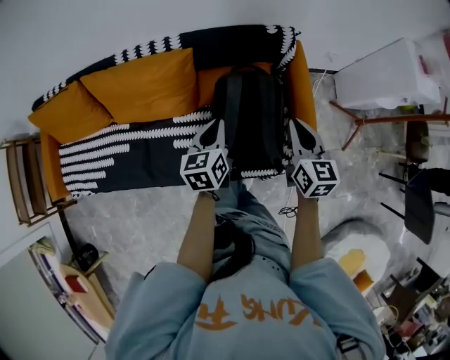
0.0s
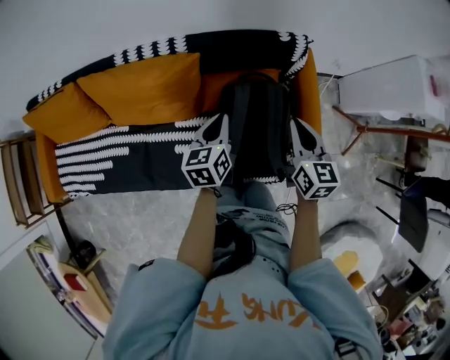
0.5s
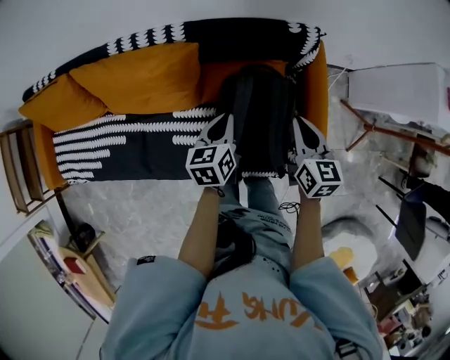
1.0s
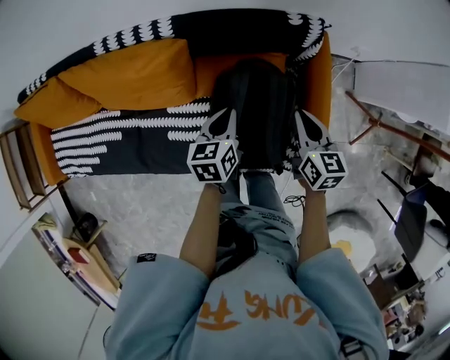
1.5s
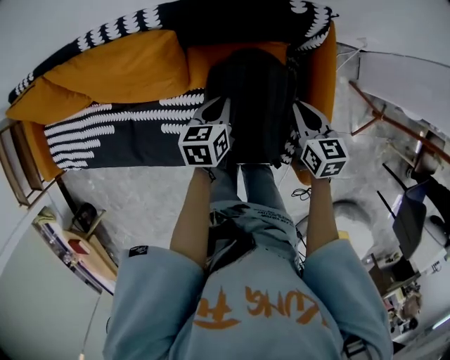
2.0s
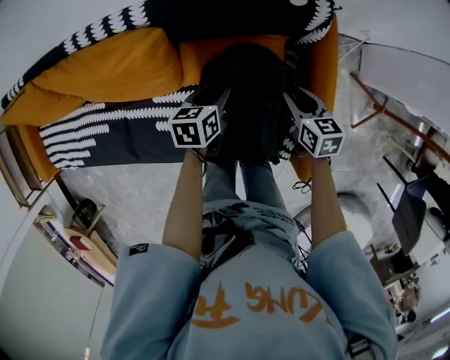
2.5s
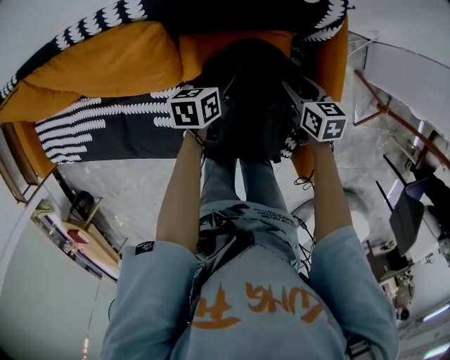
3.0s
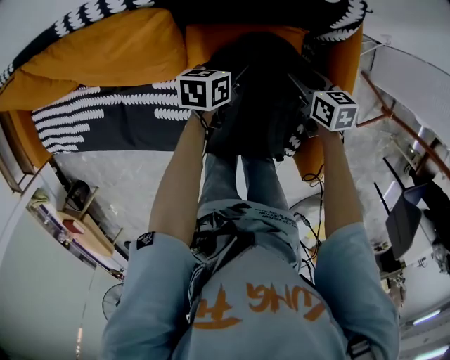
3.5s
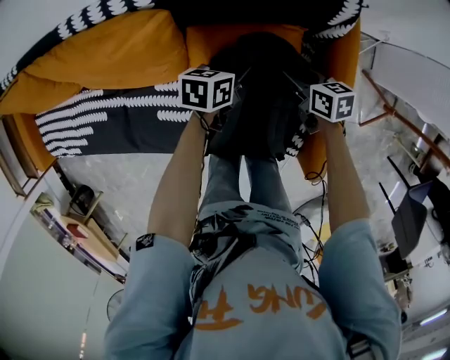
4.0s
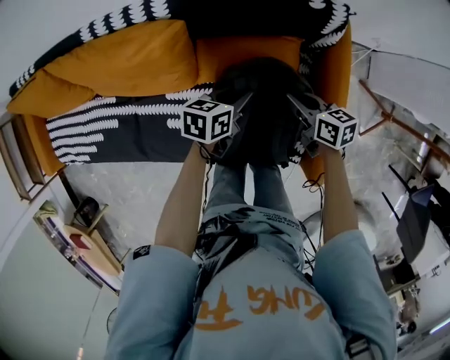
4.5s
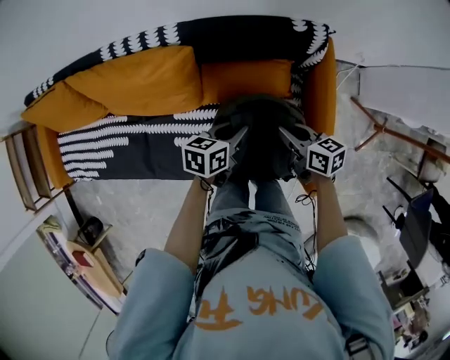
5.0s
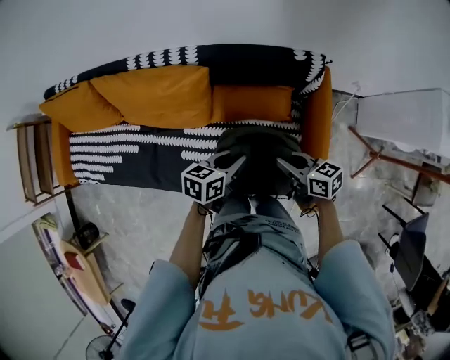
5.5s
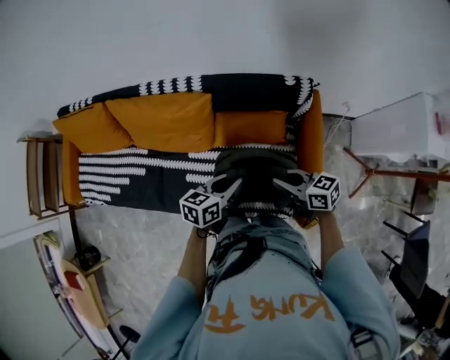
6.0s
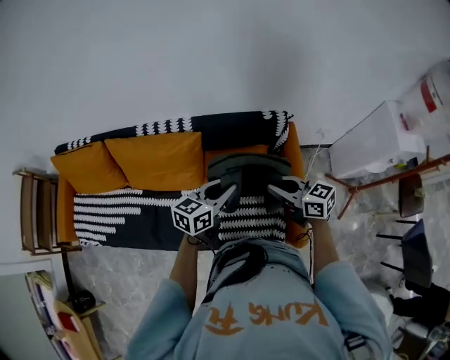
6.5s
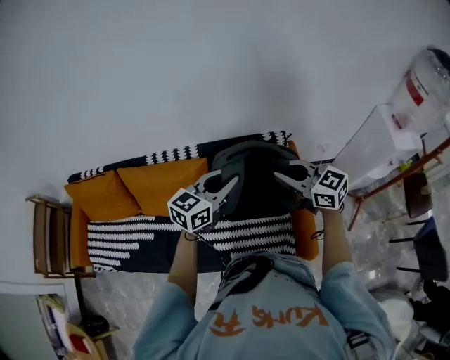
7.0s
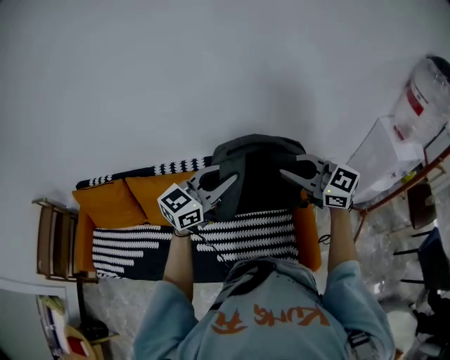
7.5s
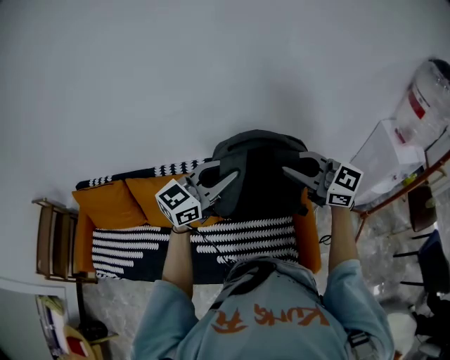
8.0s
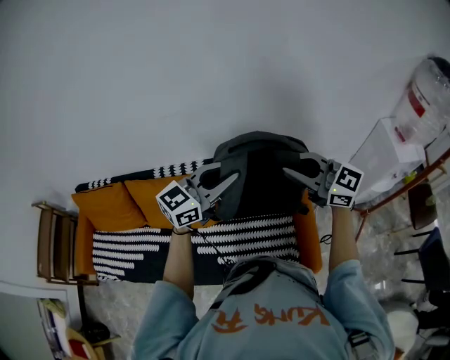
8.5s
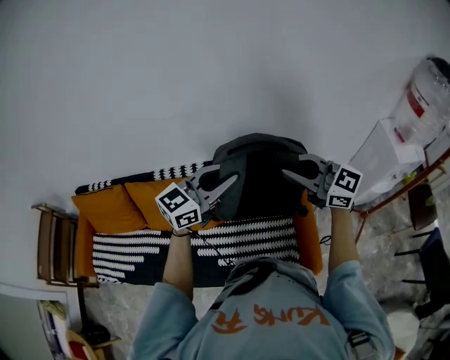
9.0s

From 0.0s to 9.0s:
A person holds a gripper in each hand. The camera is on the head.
From 0.0s to 2.0s: The grippers both shift downward and forward by roughly 20 cm. The right gripper swivels some 20 degrees.
From 2.0s to 4.5s: The right gripper heads downward, covering about 5 cm, swivels approximately 30 degrees, and opens, then closes again. The left gripper moves about 10 cm downward and comes back, rotates roughly 20 degrees, and opens, then closes once more.
From 4.5s to 7.0s: Both grippers move upward, about 40 cm. The right gripper twists roughly 40 degrees counterclockwise, seen from behind. Meanwhile the left gripper swivels about 50 degrees.
From 7.0s to 9.0s: Both grippers move upward, approximately 10 cm.

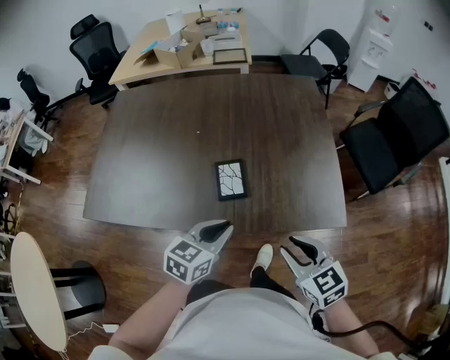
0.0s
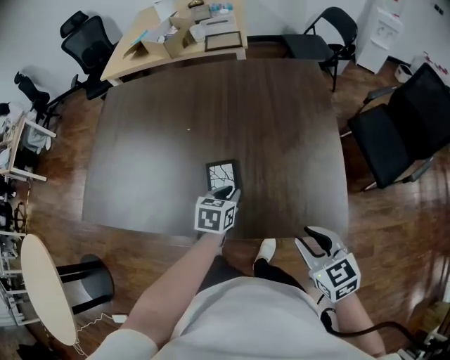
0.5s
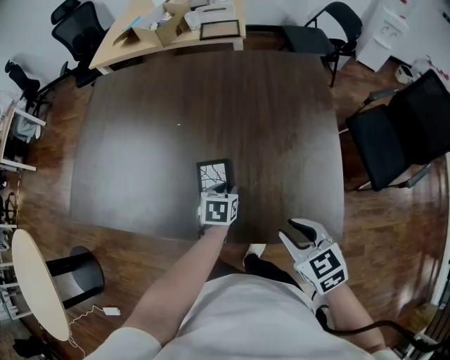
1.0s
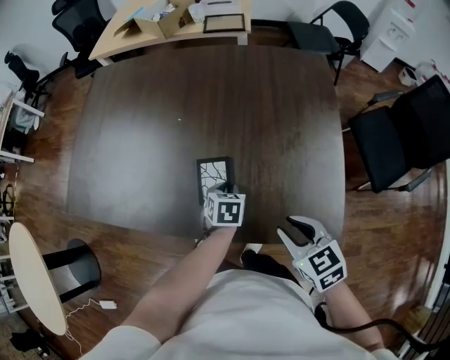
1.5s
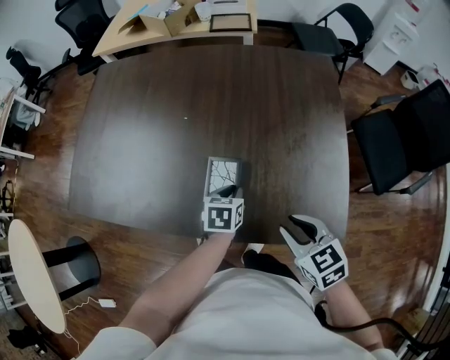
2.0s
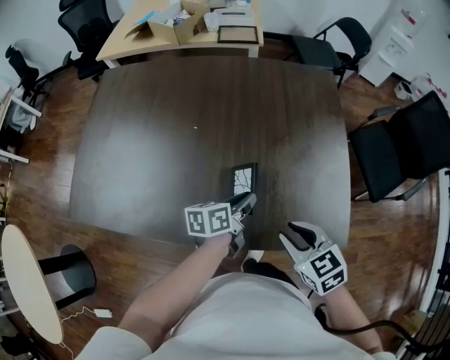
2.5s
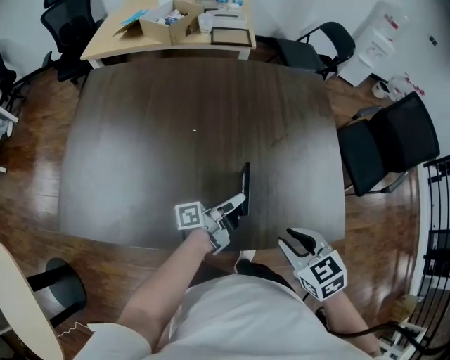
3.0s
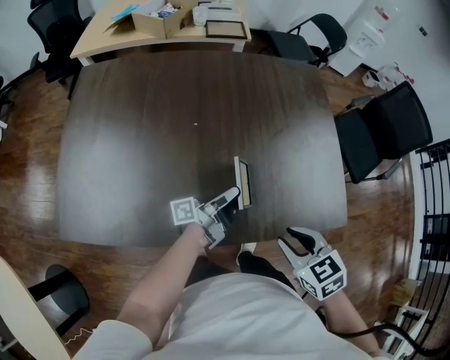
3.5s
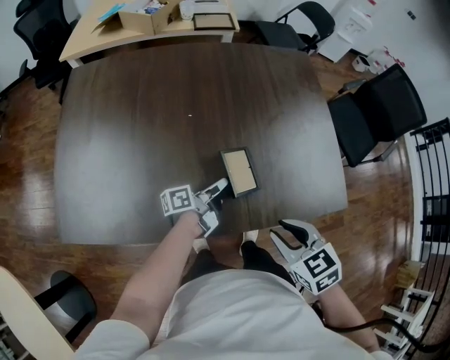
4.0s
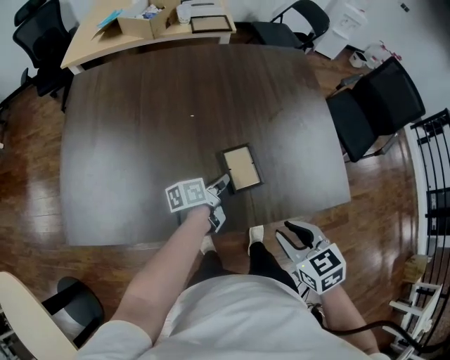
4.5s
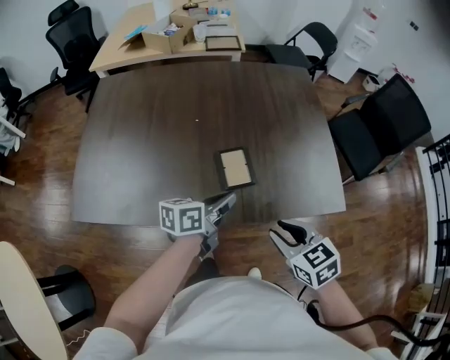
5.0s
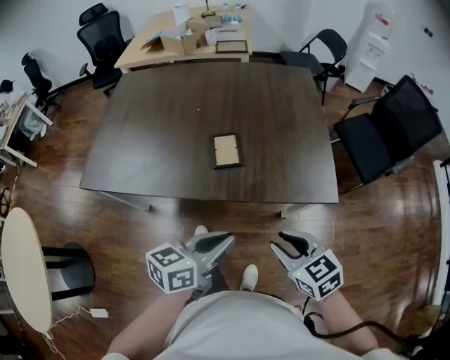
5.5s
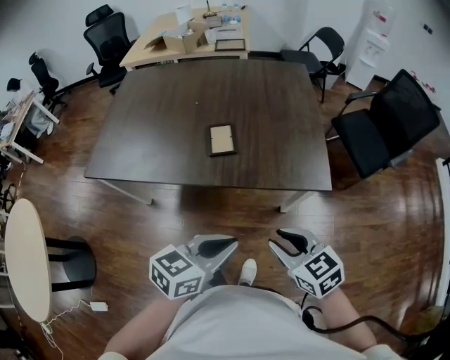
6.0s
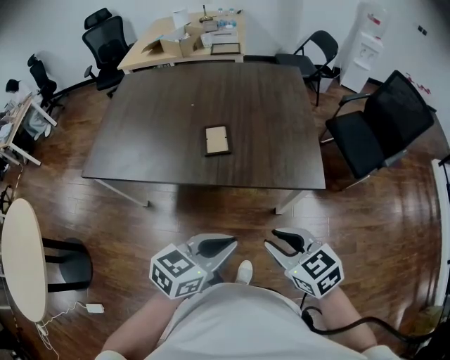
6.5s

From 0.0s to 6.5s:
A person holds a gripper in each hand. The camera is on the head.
From 0.0s to 2.0s: The left gripper heads downward, forward and to the right, covering some 20 cm, and turns by some 30 degrees; the right gripper shifts roughly 10 cm forward and to the right.
From 2.0s to 4.5s: The right gripper heads to the left and backward, covering some 15 cm. The left gripper heads to the left, covering roughly 10 cm, and points its fingers roughly 30 degrees further upward.
From 4.5s to 6.5s: The right gripper heads backward and to the right, covering approximately 20 cm, and turns by roughly 20 degrees. The left gripper travels backward, upward and to the right by roughly 40 cm, and rotates around the line of its fingers by some 50 degrees, clockwise from behind.

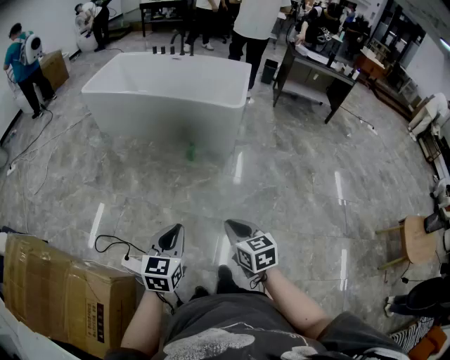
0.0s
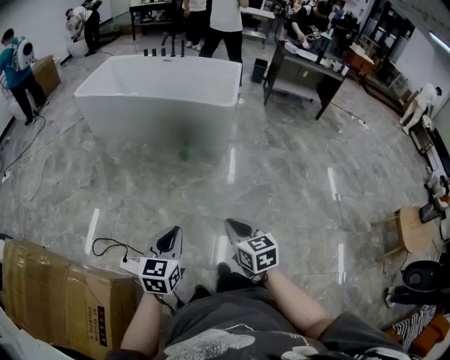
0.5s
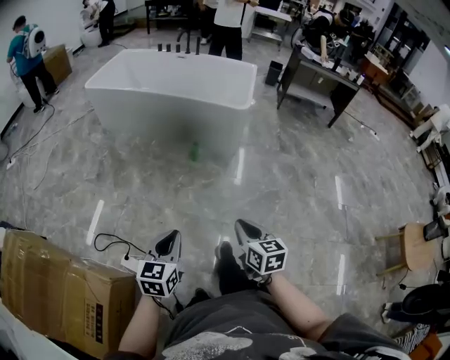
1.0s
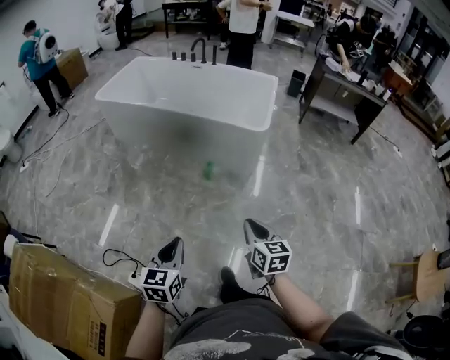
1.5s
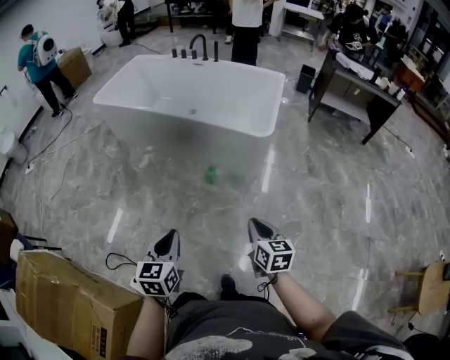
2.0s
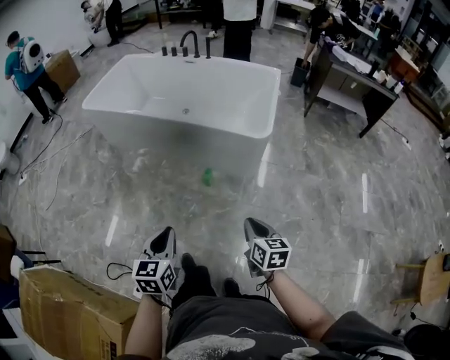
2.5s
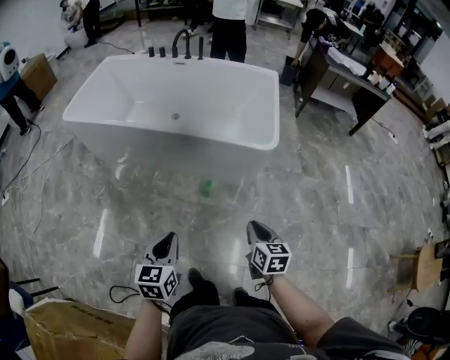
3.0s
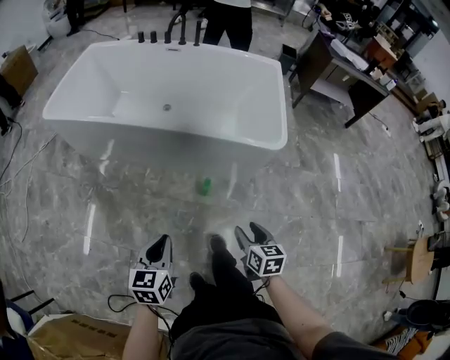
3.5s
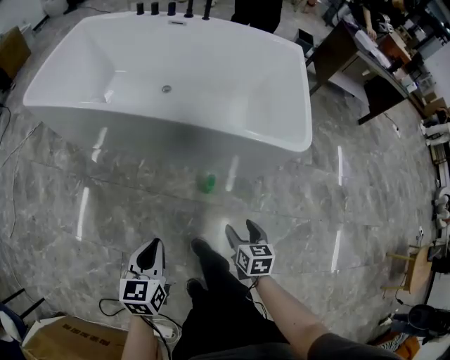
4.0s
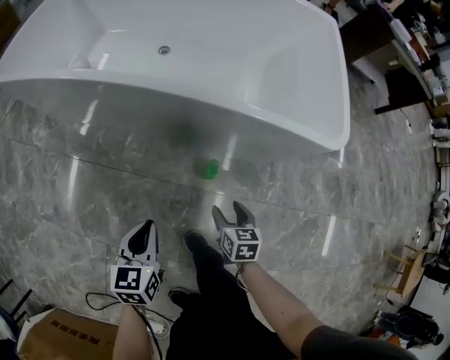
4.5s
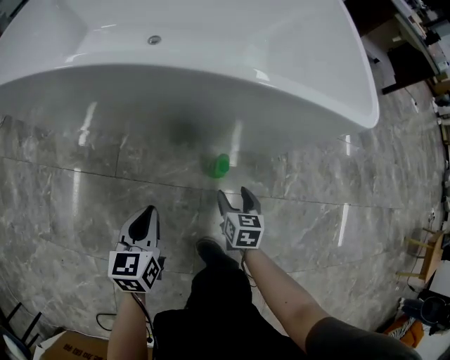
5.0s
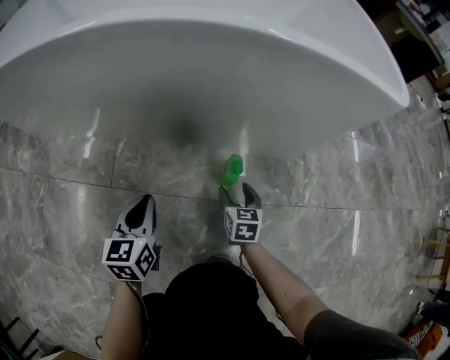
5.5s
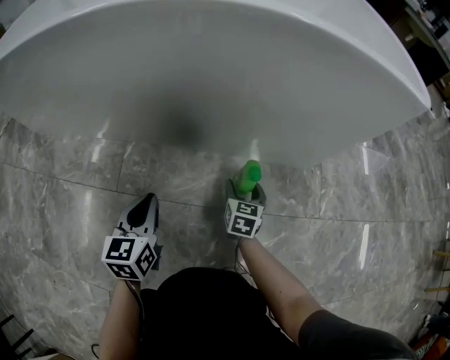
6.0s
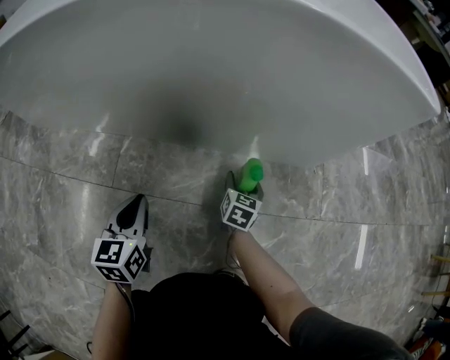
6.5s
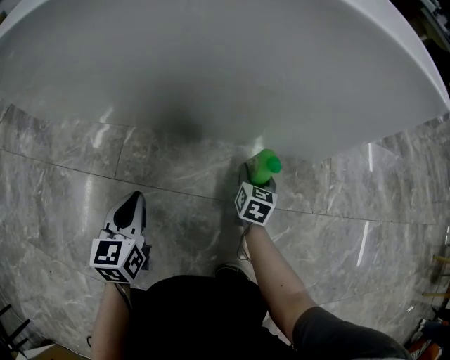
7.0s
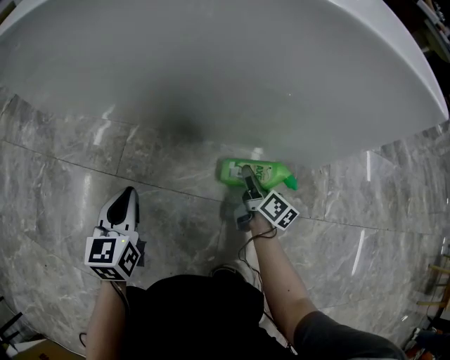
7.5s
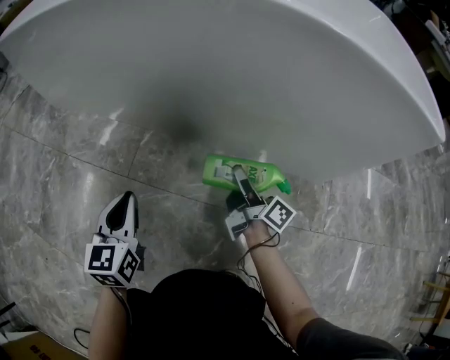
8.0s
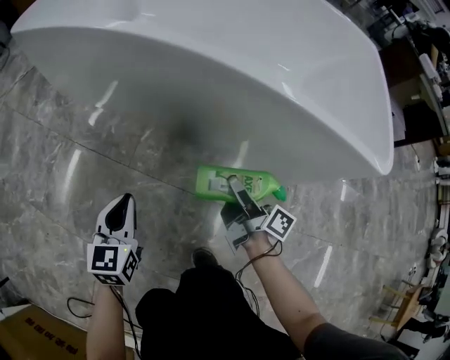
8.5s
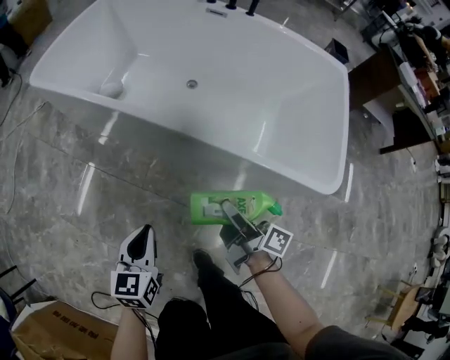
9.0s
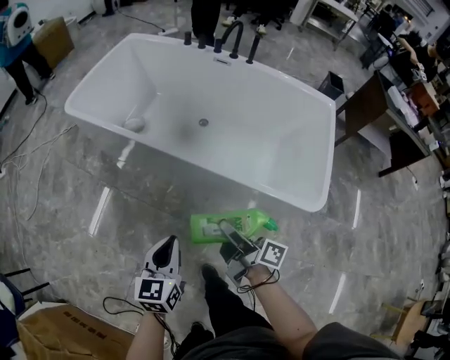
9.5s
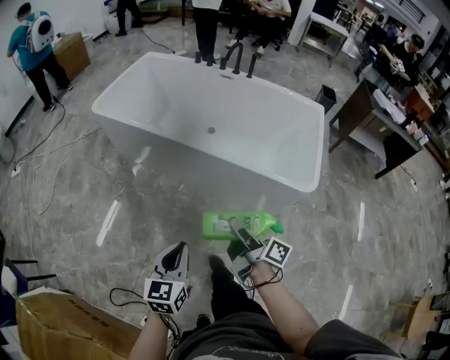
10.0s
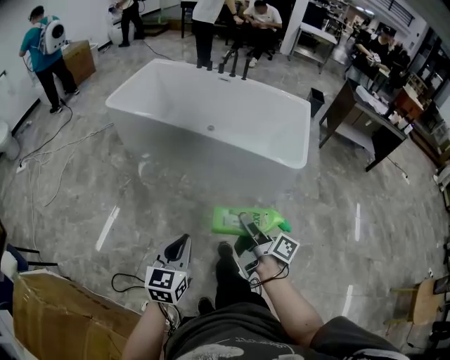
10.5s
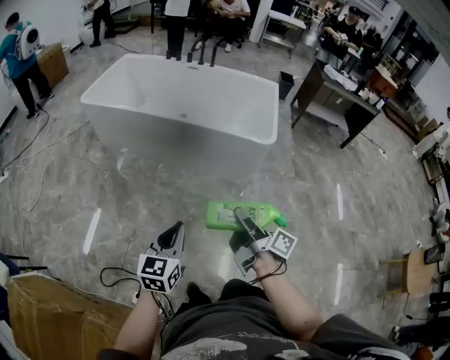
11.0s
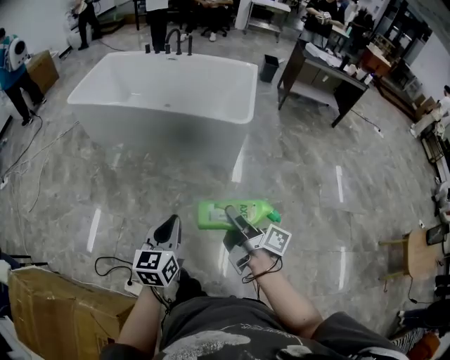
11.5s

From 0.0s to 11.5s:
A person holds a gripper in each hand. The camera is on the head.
From 0.0s to 2.0s: The two grippers go about 30 cm forward.
From 2.0s to 4.0s: The two grippers go approximately 40 cm forward, downward and to the left. The right gripper opens up.
From 4.0s to 6.0s: Both grippers travel together downward and forward, roughly 50 cm.
From 6.0s to 7.5s: The left gripper goes about 5 cm to the left. Meanwhile the right gripper rotates around the line of its fingers by some 40 degrees, clockwise from behind.
From 7.5s to 9.5s: The two grippers go some 60 cm upward. The right gripper changes its angle by roughly 40 degrees.
From 9.5s to 11.5s: The two grippers travel together, backward, approximately 50 cm.
